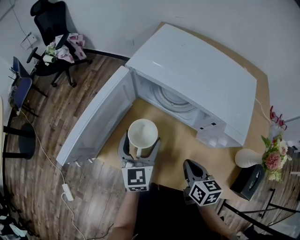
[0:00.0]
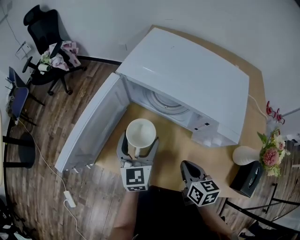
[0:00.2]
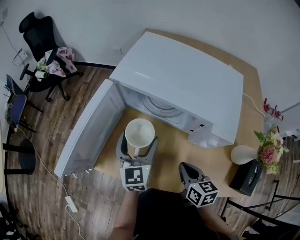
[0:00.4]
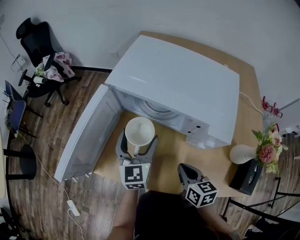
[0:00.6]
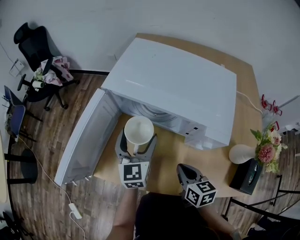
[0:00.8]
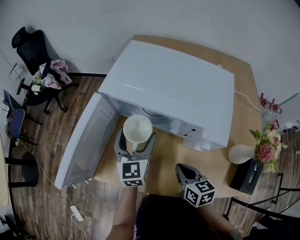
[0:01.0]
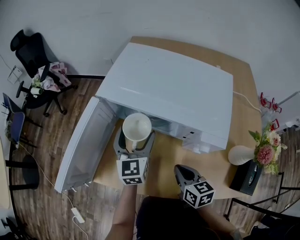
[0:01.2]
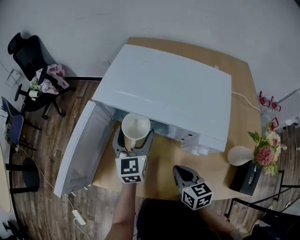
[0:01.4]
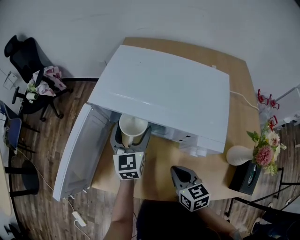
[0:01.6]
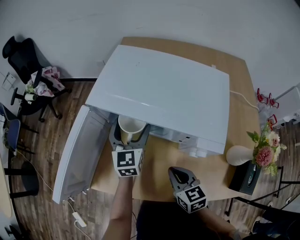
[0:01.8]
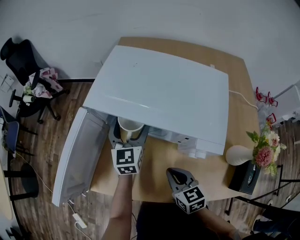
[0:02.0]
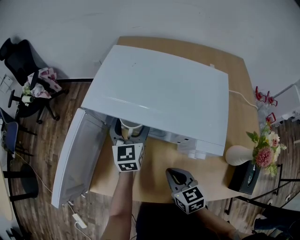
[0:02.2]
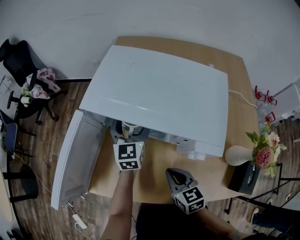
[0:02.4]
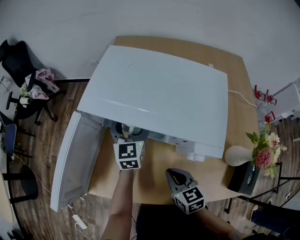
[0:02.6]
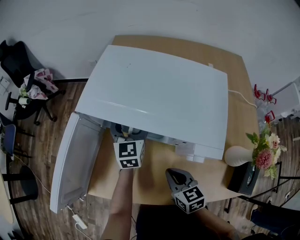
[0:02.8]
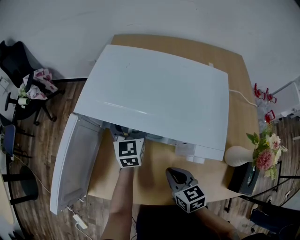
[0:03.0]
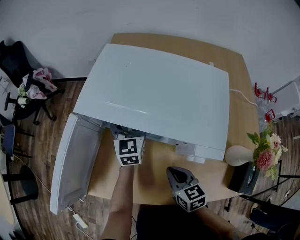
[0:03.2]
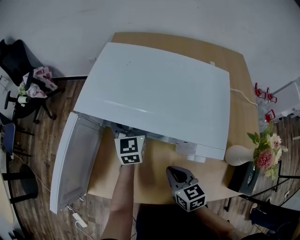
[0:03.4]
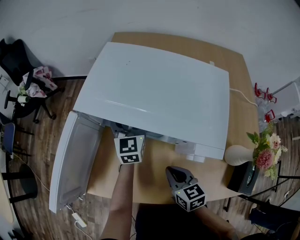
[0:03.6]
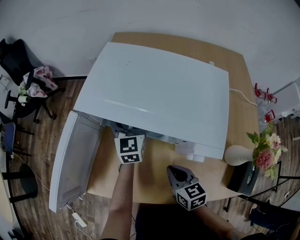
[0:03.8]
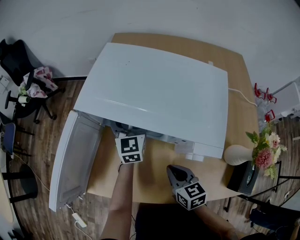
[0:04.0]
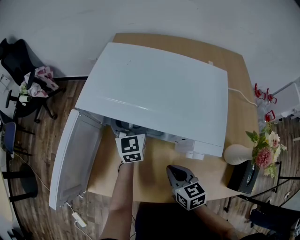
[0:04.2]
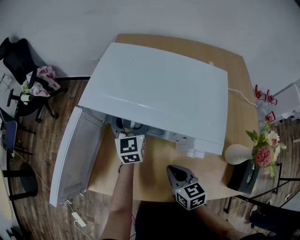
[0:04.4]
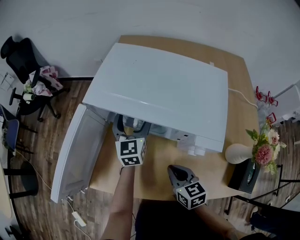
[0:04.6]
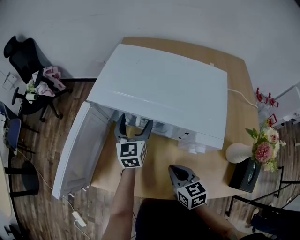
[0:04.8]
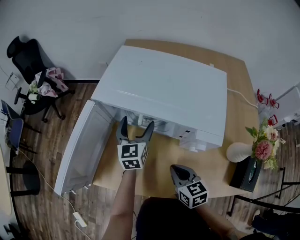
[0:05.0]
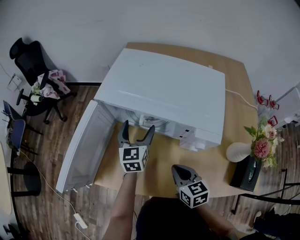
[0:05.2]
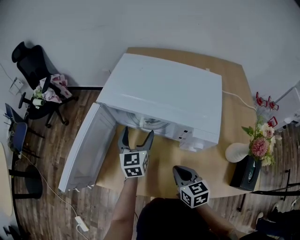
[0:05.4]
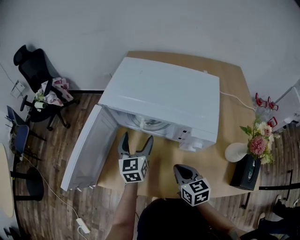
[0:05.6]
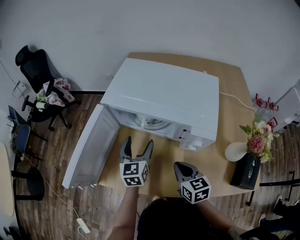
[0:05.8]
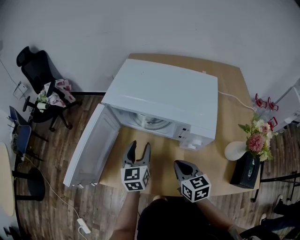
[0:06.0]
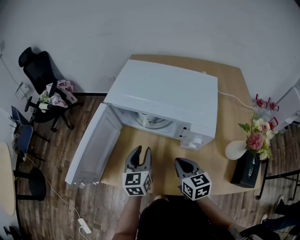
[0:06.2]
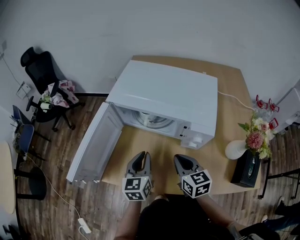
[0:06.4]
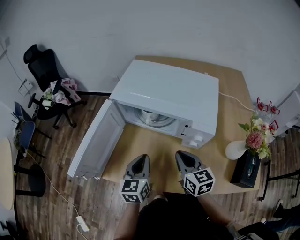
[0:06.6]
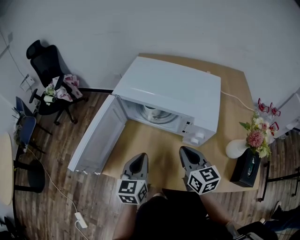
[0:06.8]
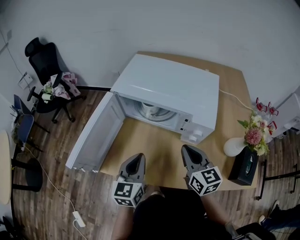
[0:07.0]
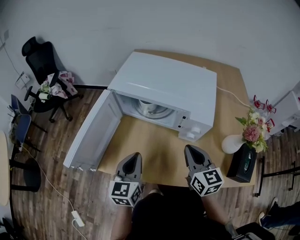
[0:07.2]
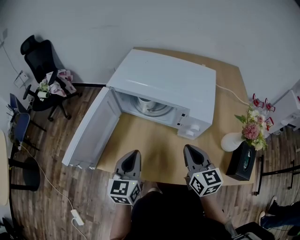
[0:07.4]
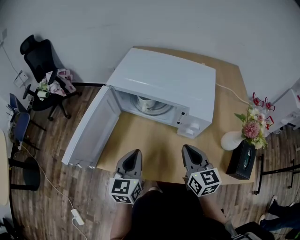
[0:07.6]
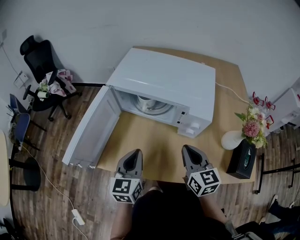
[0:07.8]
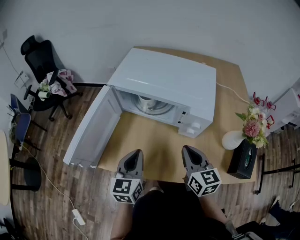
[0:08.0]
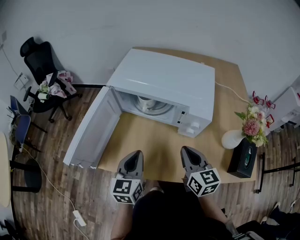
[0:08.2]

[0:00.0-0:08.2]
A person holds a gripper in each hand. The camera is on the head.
0:00.0 to 0:01.6: The left gripper shifts roughly 15 cm forward and to the right.
0:01.6 to 0:03.2: The left gripper shifts some 5 cm forward.
0:03.2 to 0:05.0: The left gripper moves backward, about 5 cm.
0:05.0 to 0:06.6: The right gripper shifts about 10 cm upward. Meanwhile the left gripper shifts roughly 20 cm backward, and closes.
0:06.6 to 0:08.2: The right gripper changes place by about 5 cm, while the left gripper ends up approximately 5 cm from where it was.

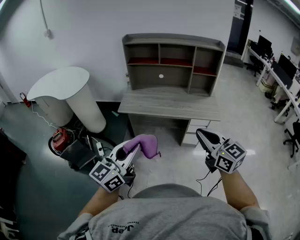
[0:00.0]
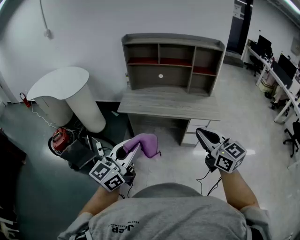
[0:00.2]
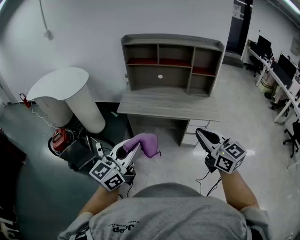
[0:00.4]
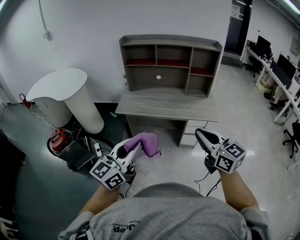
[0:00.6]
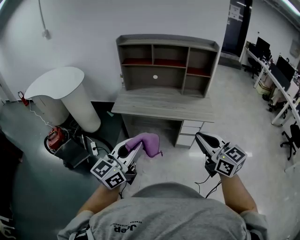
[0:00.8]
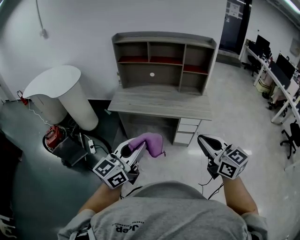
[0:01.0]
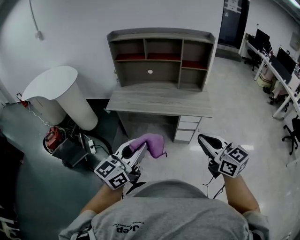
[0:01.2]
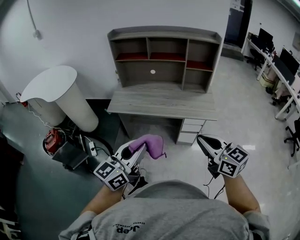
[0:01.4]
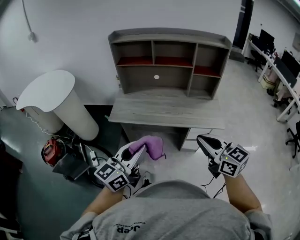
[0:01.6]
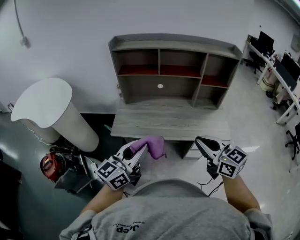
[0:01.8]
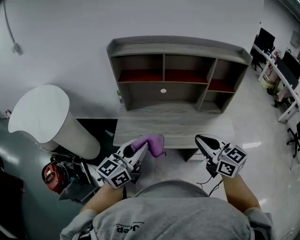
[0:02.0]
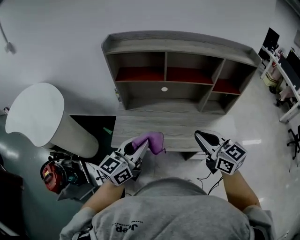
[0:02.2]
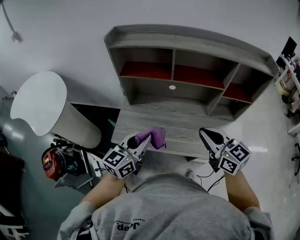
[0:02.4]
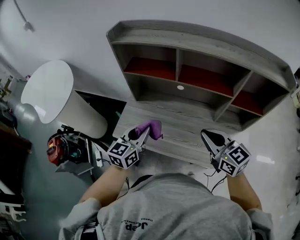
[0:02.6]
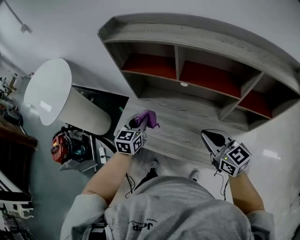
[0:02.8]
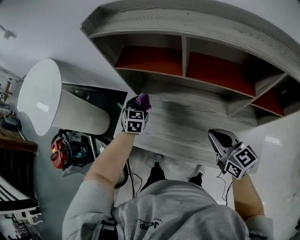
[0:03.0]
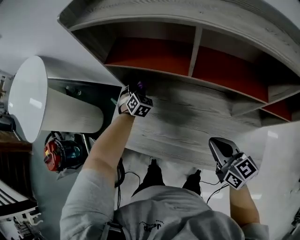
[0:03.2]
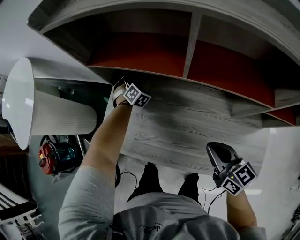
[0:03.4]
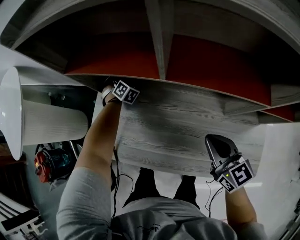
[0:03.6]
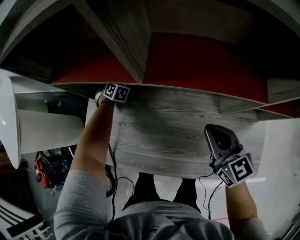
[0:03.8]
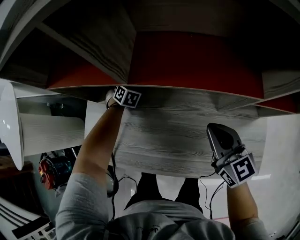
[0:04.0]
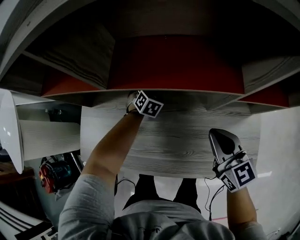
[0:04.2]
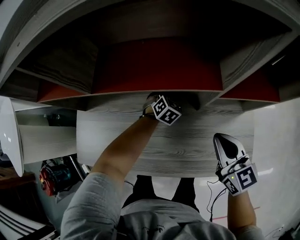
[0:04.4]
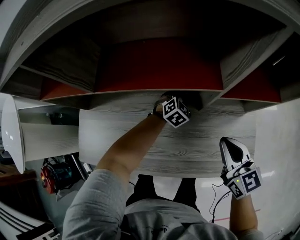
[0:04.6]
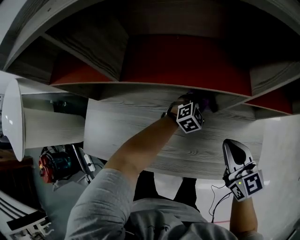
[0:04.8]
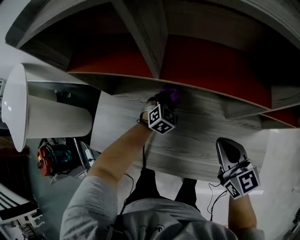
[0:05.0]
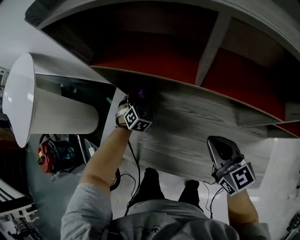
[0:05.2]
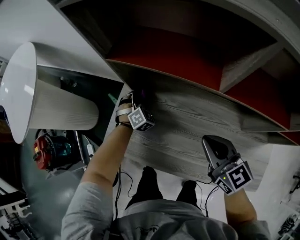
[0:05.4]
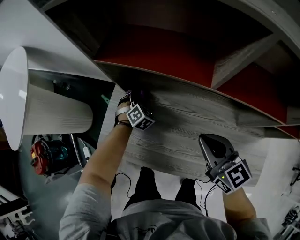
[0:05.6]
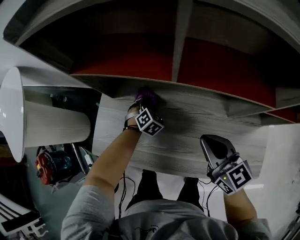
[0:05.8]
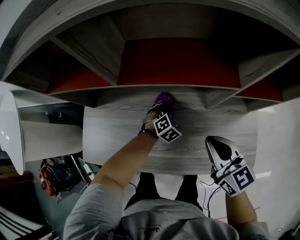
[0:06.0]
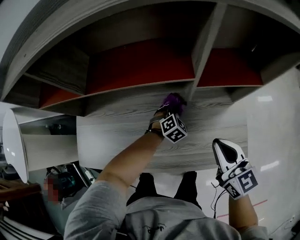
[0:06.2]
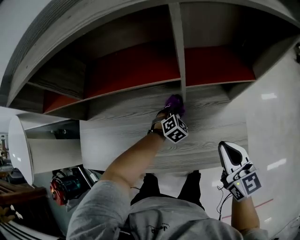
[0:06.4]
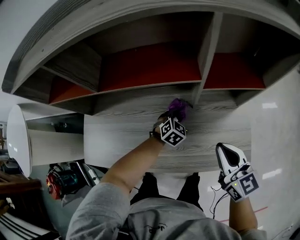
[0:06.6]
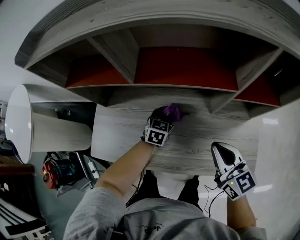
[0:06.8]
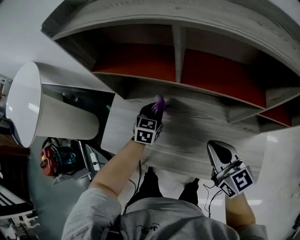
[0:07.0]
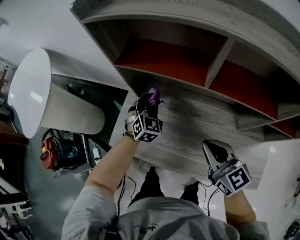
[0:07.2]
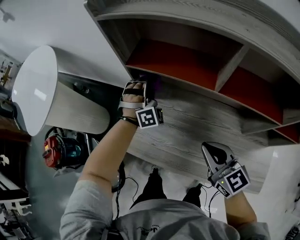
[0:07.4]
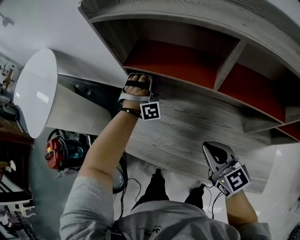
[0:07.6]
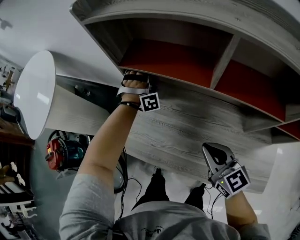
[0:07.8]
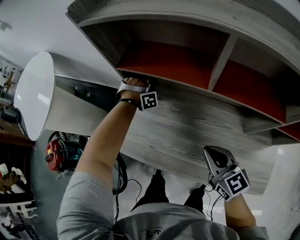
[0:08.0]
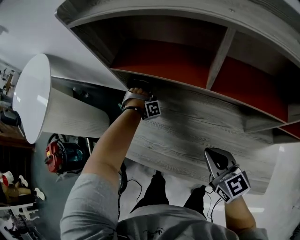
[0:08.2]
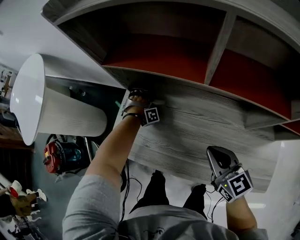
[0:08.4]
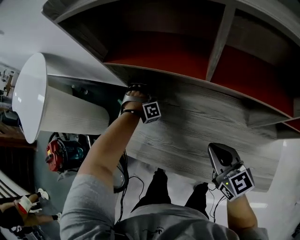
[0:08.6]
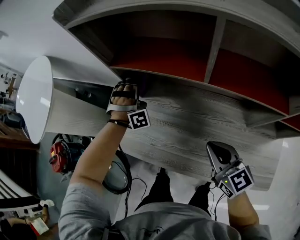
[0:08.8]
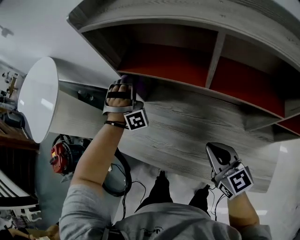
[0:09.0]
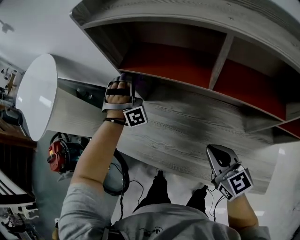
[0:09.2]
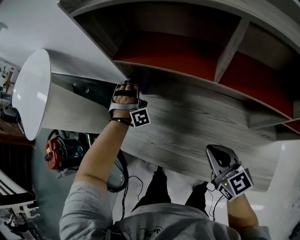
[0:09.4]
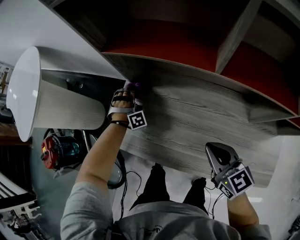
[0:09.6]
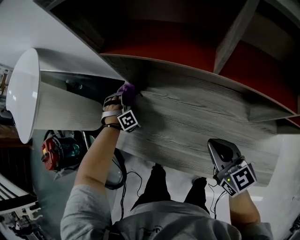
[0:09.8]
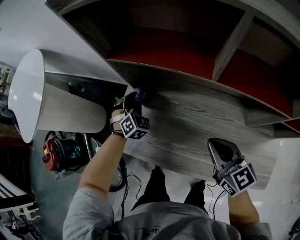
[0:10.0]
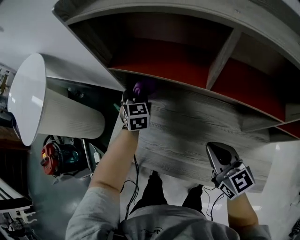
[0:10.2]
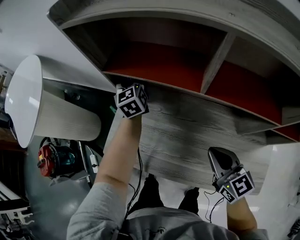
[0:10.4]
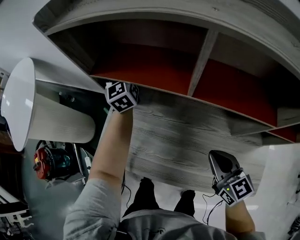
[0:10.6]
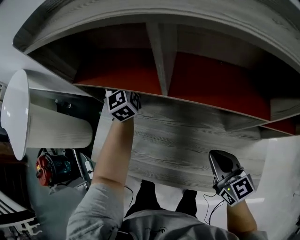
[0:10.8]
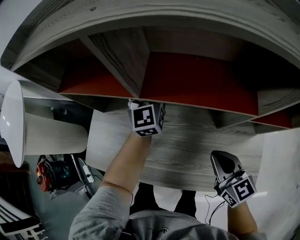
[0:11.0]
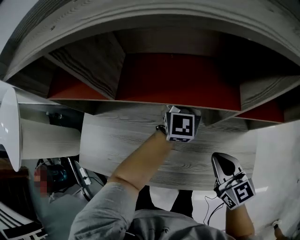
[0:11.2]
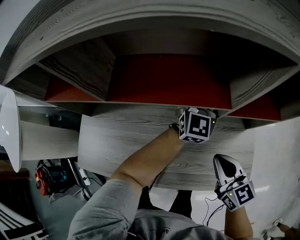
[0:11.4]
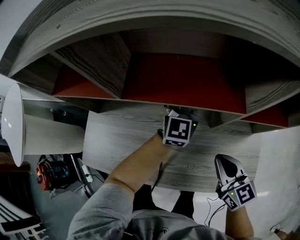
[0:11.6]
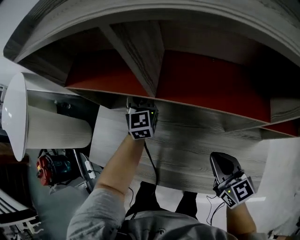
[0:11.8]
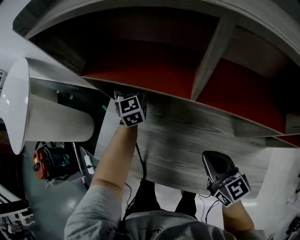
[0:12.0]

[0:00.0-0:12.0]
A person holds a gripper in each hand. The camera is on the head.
0:00.0 to 0:01.6: The left gripper is displaced forward by approximately 15 cm. The right gripper moves forward and downward, about 15 cm.
0:01.6 to 0:03.0: The two grippers travel together, about 50 cm. The left gripper tilts its fingers roughly 40 degrees downward.
0:03.0 to 0:04.4: The right gripper ends up about 25 cm from where it was, and rotates about 20 degrees. Meanwhile the left gripper ends up approximately 40 cm from where it was, and turns by approximately 40 degrees.
0:06.0 to 0:07.6: The left gripper ends up roughly 40 cm from where it was, and points its fingers approximately 50 degrees further upward. Meanwhile the right gripper moves approximately 20 cm, and rotates roughly 20 degrees.
0:07.6 to 0:09.0: The left gripper goes approximately 5 cm to the left, and travels downward and back again, some 25 cm each way.
0:09.0 to 0:10.4: The left gripper is displaced forward by some 5 cm, moves roughly 25 cm downward and comes back, and twists some 110 degrees counterclockwise, seen from behind.
0:10.4 to 0:12.0: The left gripper heads downward, covering about 5 cm.

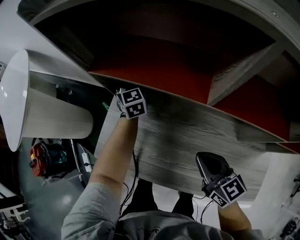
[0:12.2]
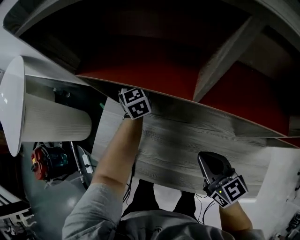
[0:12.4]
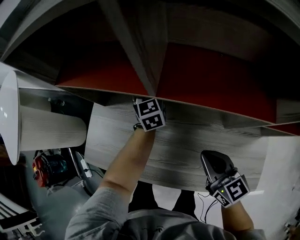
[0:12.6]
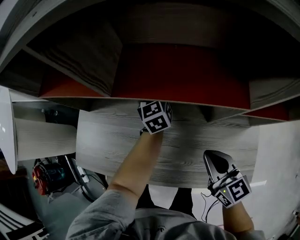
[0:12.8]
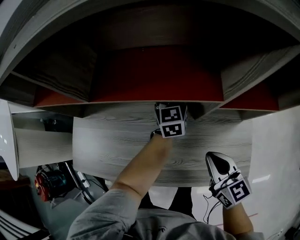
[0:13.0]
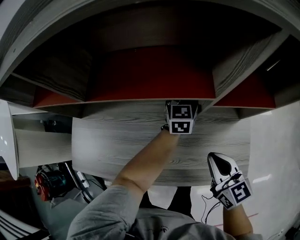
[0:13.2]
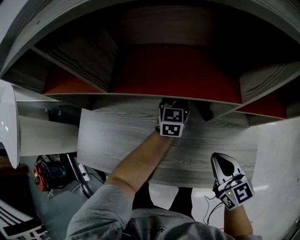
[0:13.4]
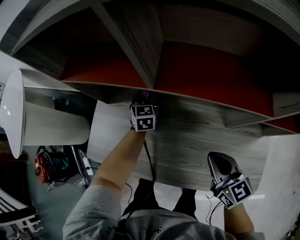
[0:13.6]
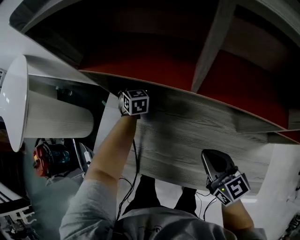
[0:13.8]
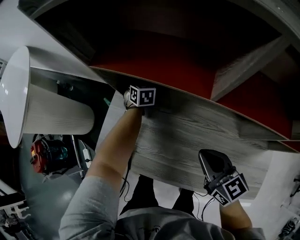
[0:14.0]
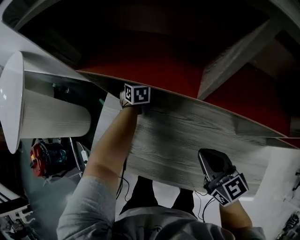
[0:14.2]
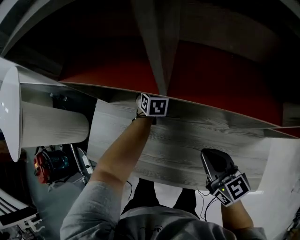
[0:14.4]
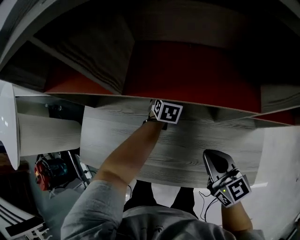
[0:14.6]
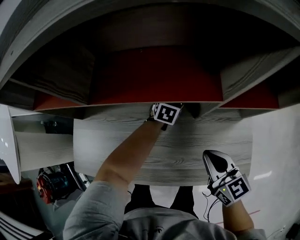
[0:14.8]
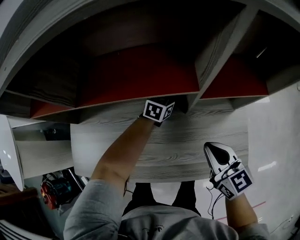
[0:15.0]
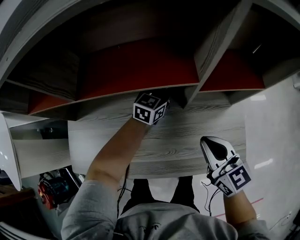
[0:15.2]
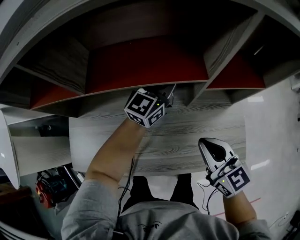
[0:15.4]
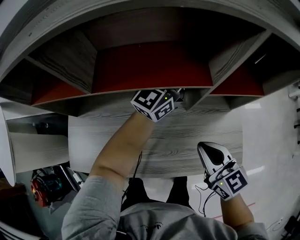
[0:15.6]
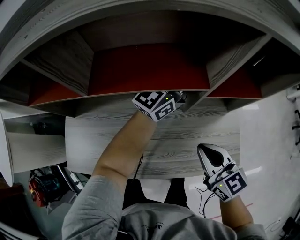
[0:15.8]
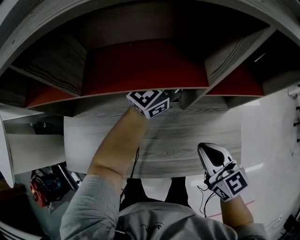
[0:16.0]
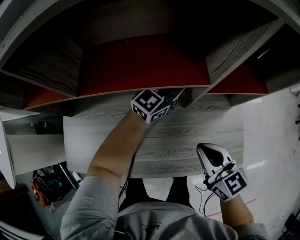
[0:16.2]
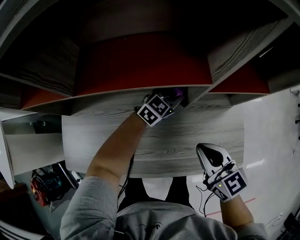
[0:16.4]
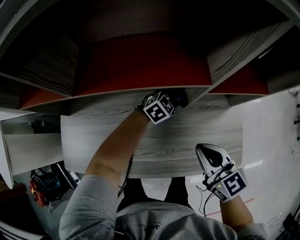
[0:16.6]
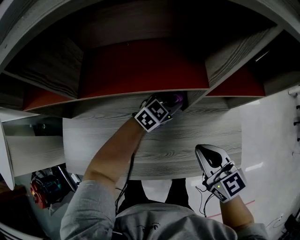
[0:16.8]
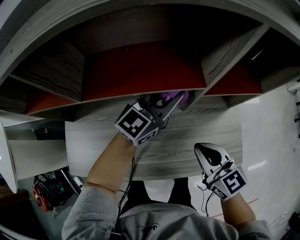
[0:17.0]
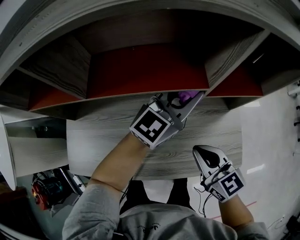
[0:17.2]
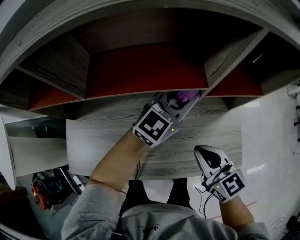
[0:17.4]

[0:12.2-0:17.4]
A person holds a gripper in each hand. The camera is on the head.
0:12.2 to 0:14.0: The left gripper shifts about 10 cm downward, and changes its angle by about 30 degrees.
0:14.0 to 0:15.6: The left gripper shifts by about 60 cm, and tilts its fingers about 50 degrees upward; the right gripper moves roughly 25 cm.
0:15.6 to 0:17.4: The left gripper moves backward, some 5 cm, goes downward and returns, approximately 30 cm each way, and changes its angle by some 20 degrees.
